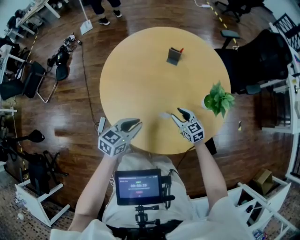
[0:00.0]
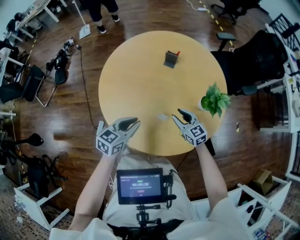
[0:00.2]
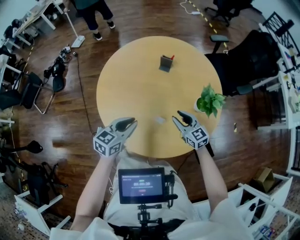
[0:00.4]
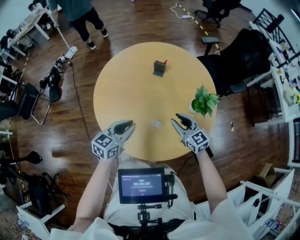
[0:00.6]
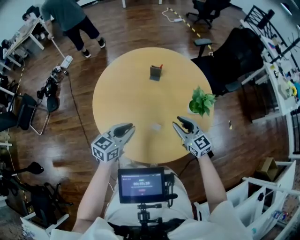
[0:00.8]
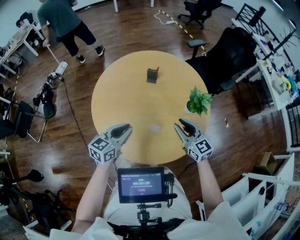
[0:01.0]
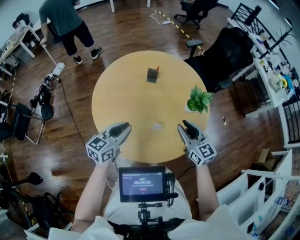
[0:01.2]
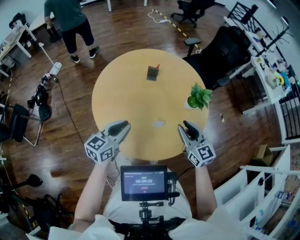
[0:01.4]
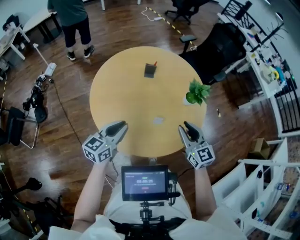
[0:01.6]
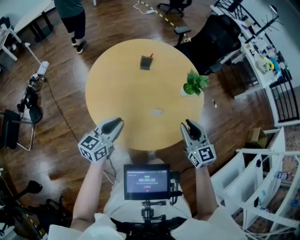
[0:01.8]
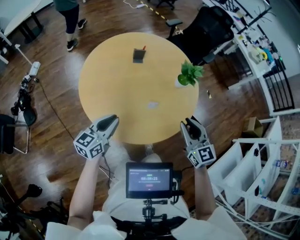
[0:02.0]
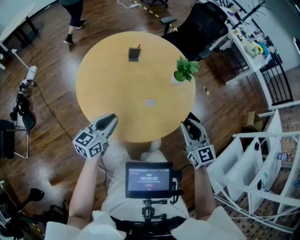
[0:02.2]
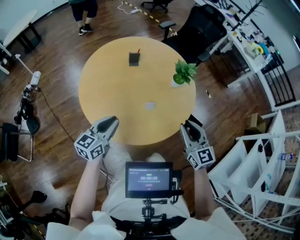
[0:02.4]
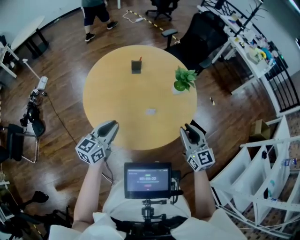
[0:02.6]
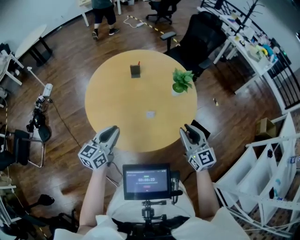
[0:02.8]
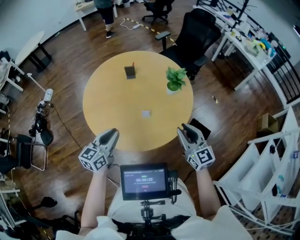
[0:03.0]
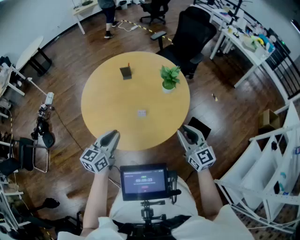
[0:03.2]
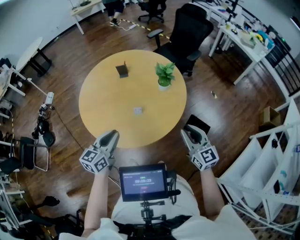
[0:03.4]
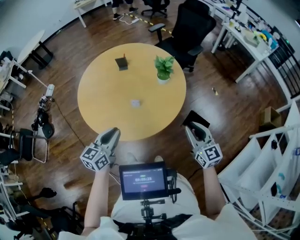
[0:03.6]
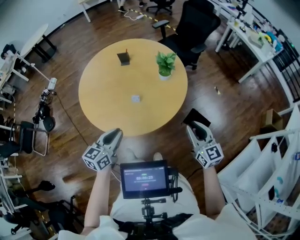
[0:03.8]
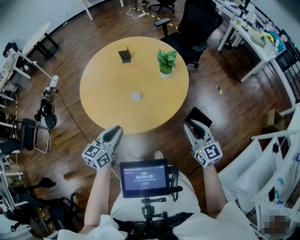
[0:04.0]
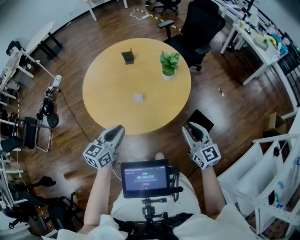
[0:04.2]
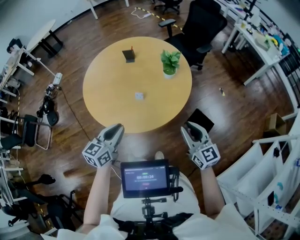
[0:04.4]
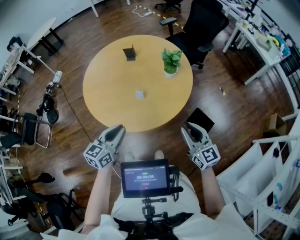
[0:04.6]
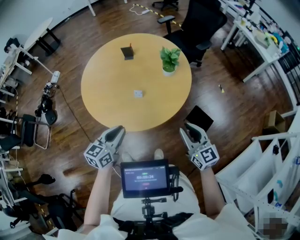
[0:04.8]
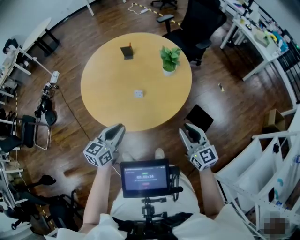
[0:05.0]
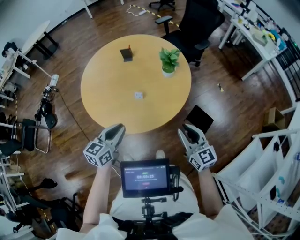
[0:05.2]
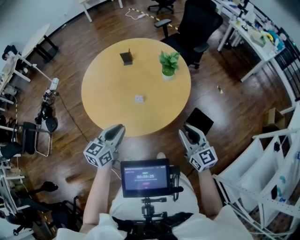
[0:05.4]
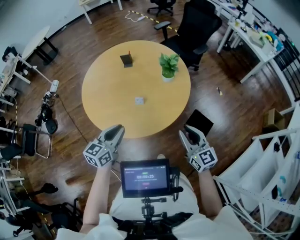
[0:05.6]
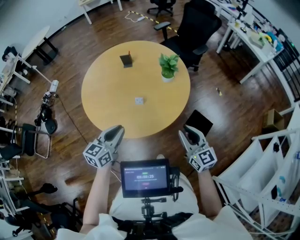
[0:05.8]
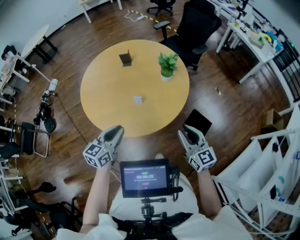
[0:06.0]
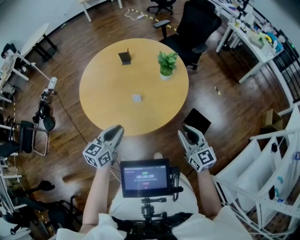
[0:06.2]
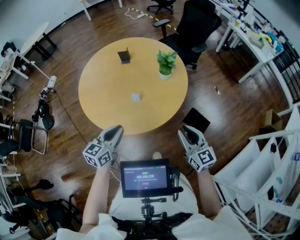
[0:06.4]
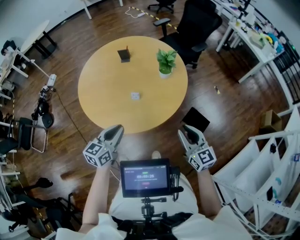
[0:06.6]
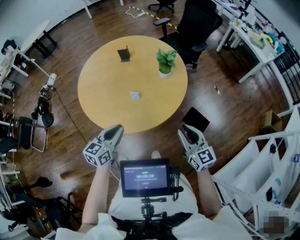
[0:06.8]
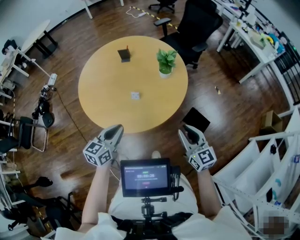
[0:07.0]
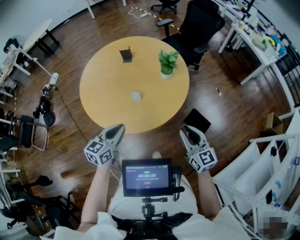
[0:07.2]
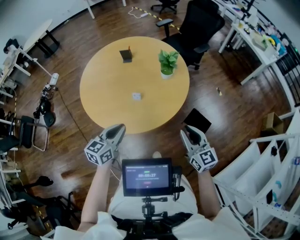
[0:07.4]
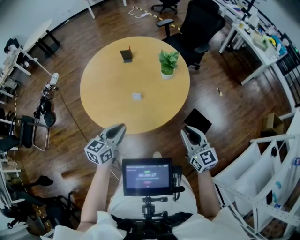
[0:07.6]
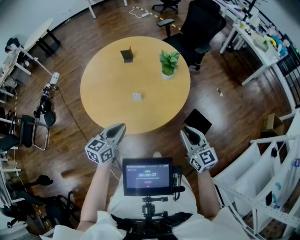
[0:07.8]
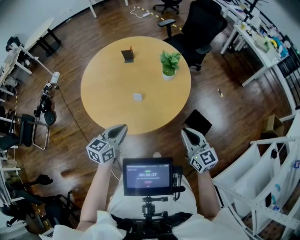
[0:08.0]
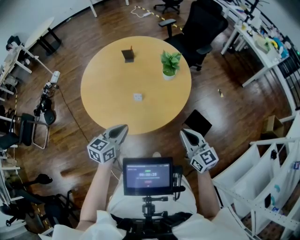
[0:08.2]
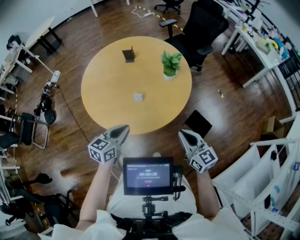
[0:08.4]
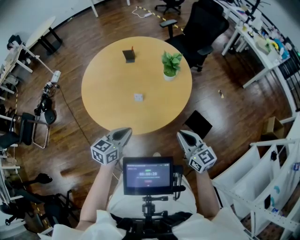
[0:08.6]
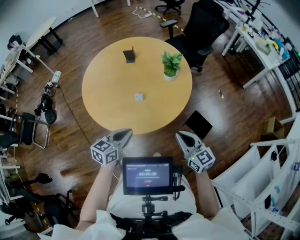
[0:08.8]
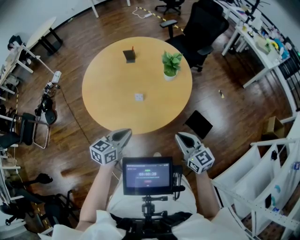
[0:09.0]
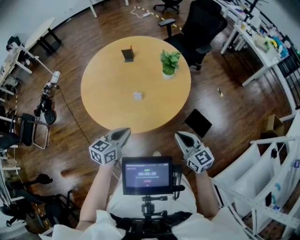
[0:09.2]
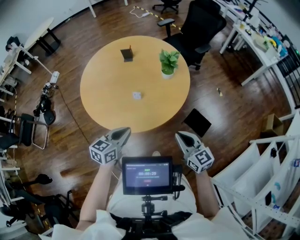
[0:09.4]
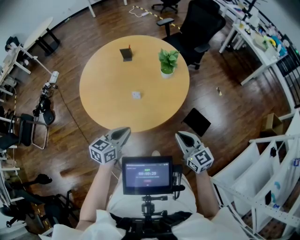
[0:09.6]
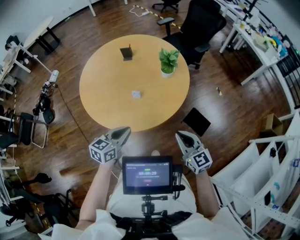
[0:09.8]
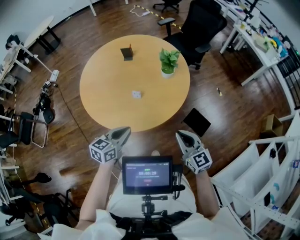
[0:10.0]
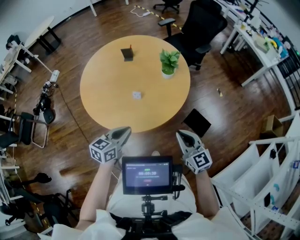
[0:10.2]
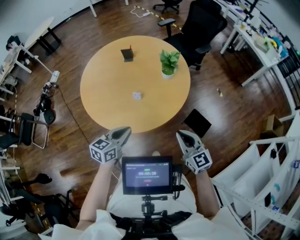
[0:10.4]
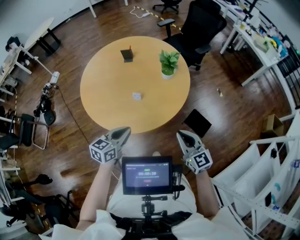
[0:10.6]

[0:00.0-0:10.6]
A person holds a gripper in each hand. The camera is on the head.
0:00.0 to 0:01.6: The right gripper moves upward, some 25 cm, turns by about 30 degrees, and closes; the left gripper is displaced upward and to the left by about 15 cm.
0:01.6 to 0:03.0: Both grippers travel together to the right and backward, approximately 15 cm.
0:03.0 to 0:04.6: Both grippers move to the right and backward, approximately 15 cm.
0:04.6 to 0:10.6: The grippers make only small movements.

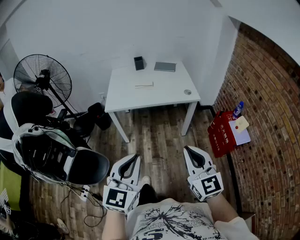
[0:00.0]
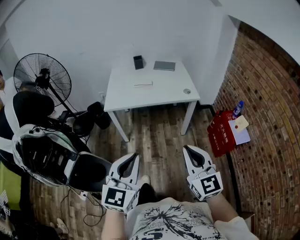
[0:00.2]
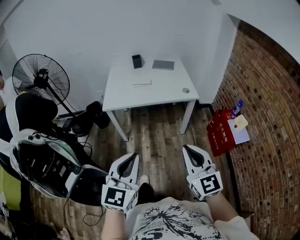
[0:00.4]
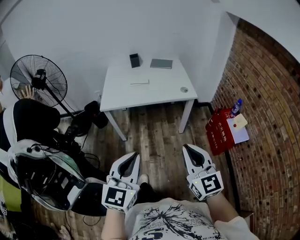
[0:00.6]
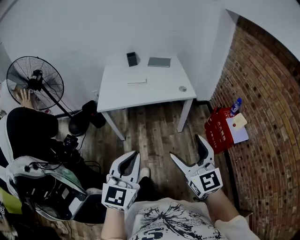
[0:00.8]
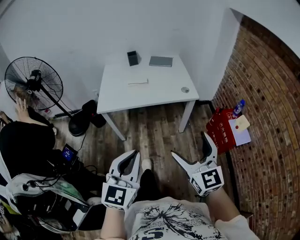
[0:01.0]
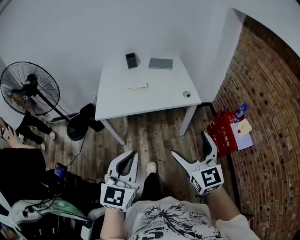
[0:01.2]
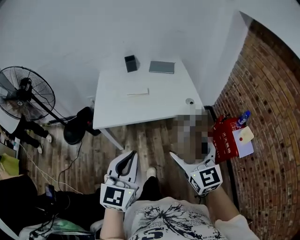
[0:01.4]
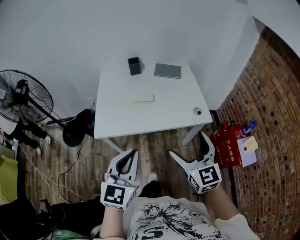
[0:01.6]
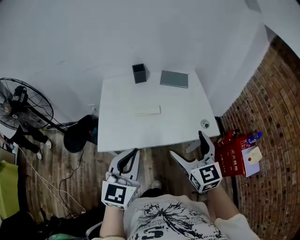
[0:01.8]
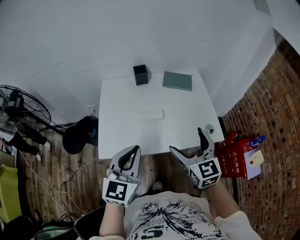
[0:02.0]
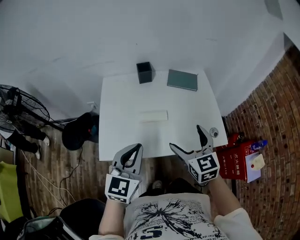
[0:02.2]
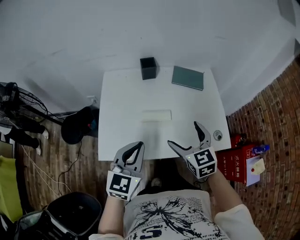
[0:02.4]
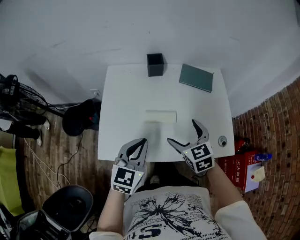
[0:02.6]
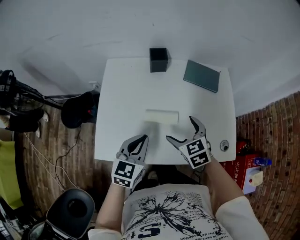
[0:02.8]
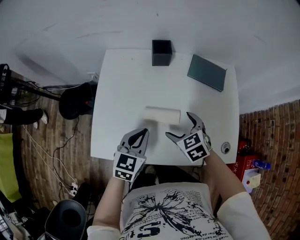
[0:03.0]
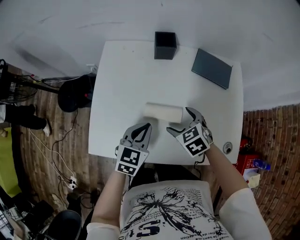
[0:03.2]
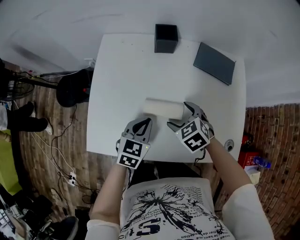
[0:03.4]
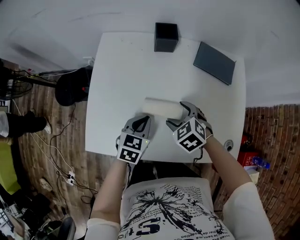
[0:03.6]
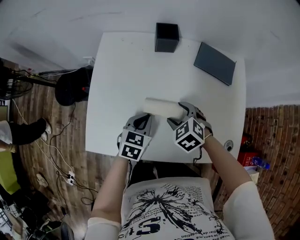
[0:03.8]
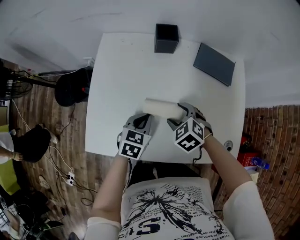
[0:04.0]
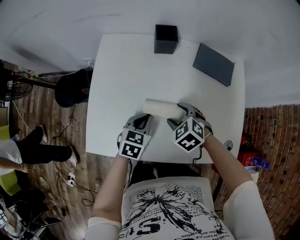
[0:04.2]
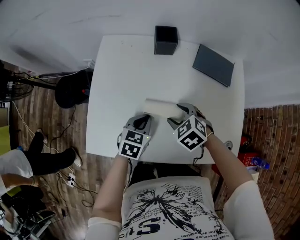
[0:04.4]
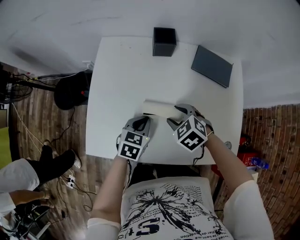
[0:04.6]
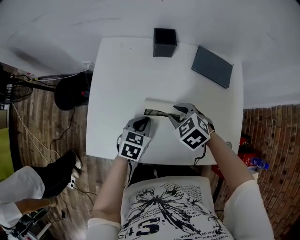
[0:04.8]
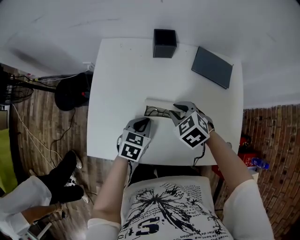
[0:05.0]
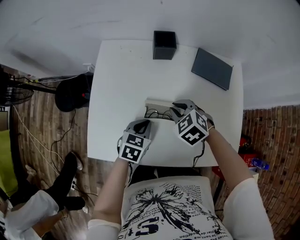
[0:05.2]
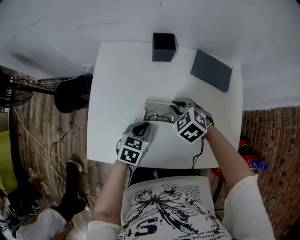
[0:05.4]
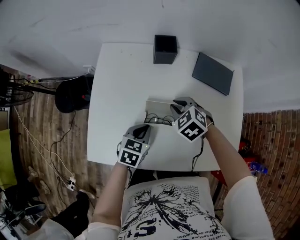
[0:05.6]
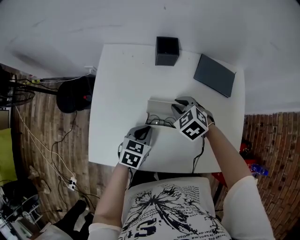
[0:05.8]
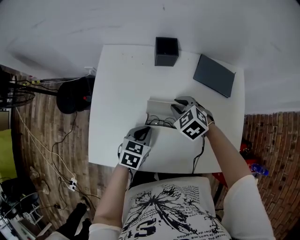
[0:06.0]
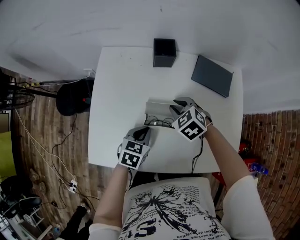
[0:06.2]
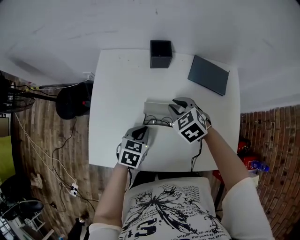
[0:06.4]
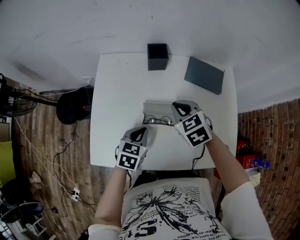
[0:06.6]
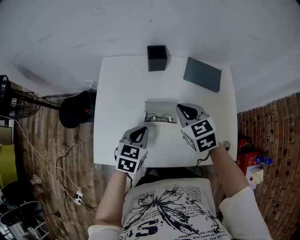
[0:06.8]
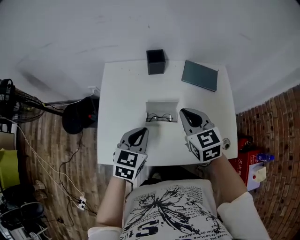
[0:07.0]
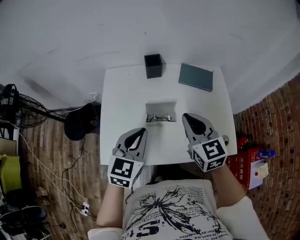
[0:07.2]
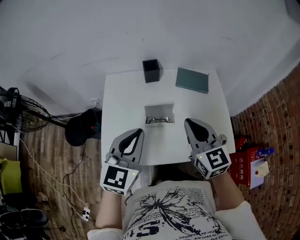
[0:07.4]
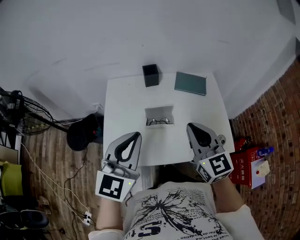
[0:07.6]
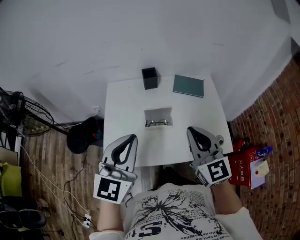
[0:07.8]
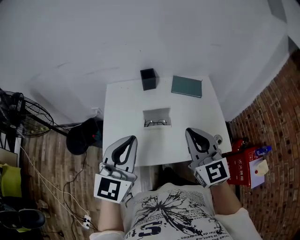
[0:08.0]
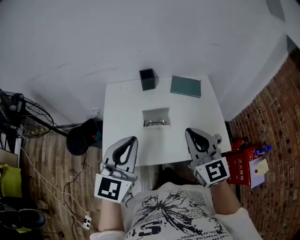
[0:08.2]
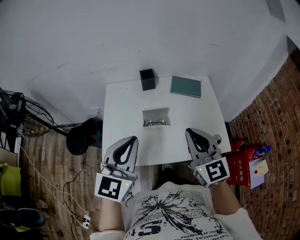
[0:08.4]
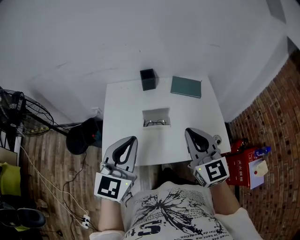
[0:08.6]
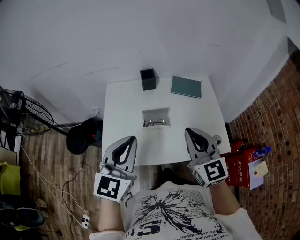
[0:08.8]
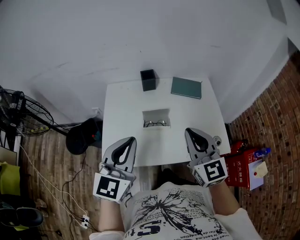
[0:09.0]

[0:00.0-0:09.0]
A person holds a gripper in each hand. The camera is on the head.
0:00.0 to 0:01.6: Both grippers travel together forward, about 35 cm. The right gripper opens up.
0:01.6 to 0:03.0: Both grippers travel together forward and downward, about 50 cm. The left gripper rotates roughly 20 degrees; the right gripper points its fingers some 40 degrees further downward.
0:03.0 to 0:04.4: The left gripper is displaced downward by some 10 cm; the right gripper shifts by some 5 cm, and closes.
0:04.4 to 0:06.0: The right gripper is displaced forward by approximately 10 cm.
0:06.0 to 0:07.6: The two grippers go approximately 40 cm upward and backward. The right gripper angles its fingers upward, by approximately 50 degrees, while the left gripper tilts its fingers about 40 degrees upward.
0:07.6 to 0:09.0: There are only small adjustments of the grippers.

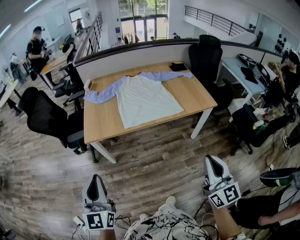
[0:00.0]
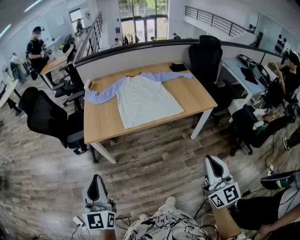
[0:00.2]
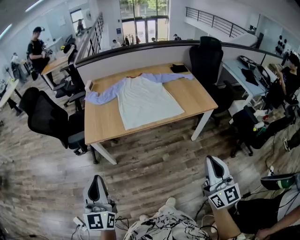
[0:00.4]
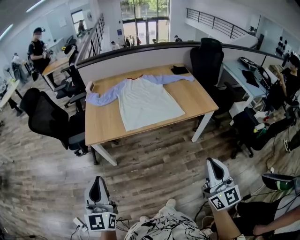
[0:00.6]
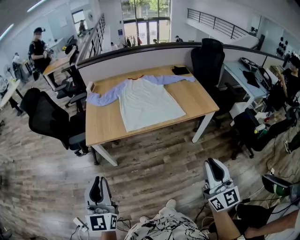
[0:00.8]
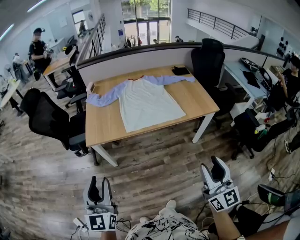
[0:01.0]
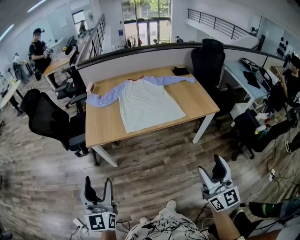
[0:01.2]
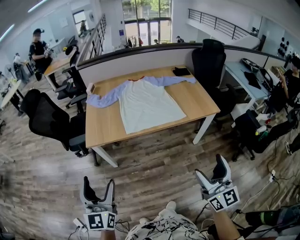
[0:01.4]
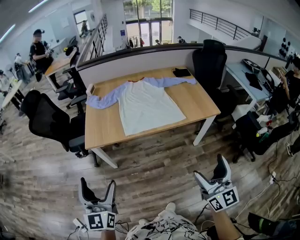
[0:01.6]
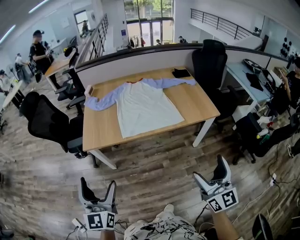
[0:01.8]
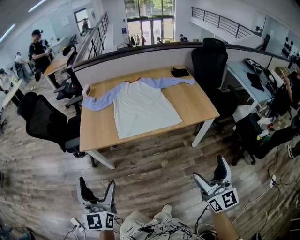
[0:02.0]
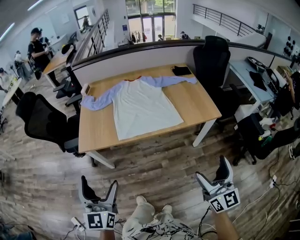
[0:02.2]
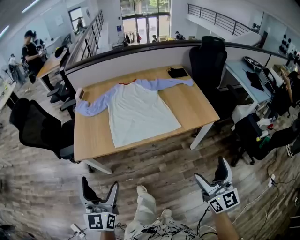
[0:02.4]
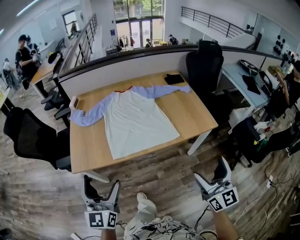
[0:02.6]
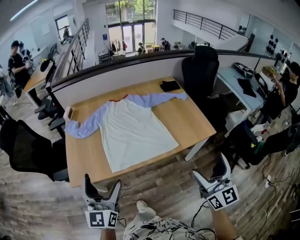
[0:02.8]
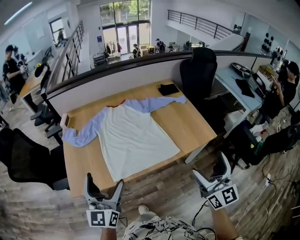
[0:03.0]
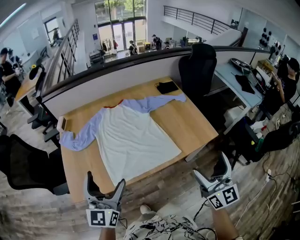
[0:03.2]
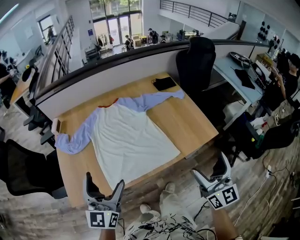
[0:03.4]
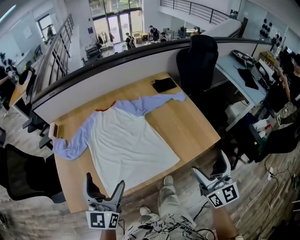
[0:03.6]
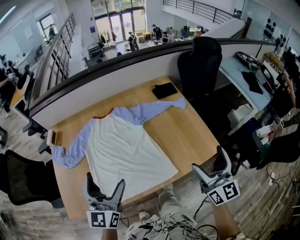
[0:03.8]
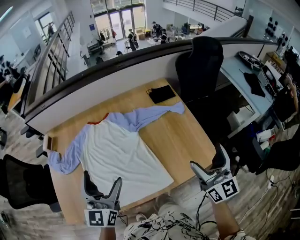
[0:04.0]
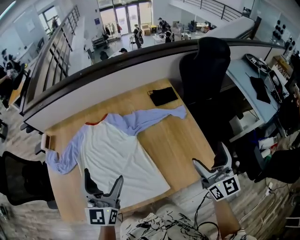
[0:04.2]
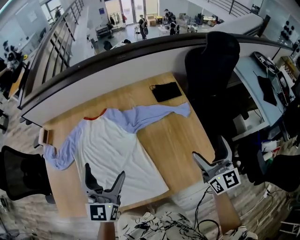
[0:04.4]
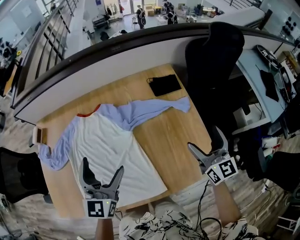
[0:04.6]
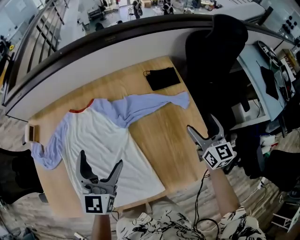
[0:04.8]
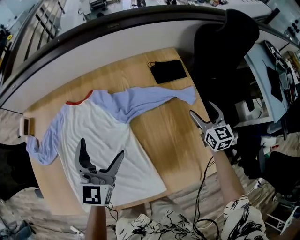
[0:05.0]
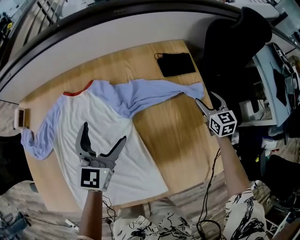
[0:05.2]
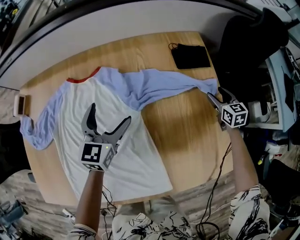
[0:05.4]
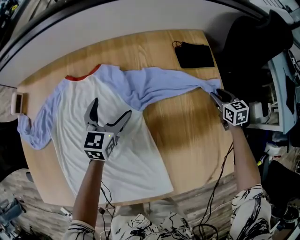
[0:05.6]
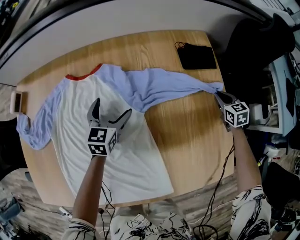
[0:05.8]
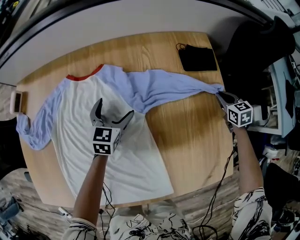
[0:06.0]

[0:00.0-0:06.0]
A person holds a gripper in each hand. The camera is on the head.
0:00.0 to 0:01.6: The right gripper opens up; the left gripper opens up.
0:01.6 to 0:03.0: The two grippers go some 30 cm forward.
0:03.0 to 0:04.4: The two grippers travel together, forward and to the right, roughly 40 cm.
0:04.4 to 0:06.0: Both grippers travel together downward and forward, about 40 cm. The right gripper points its fingers about 50 degrees further downward, and closes its fingers. Meanwhile the left gripper changes its angle by some 30 degrees.
